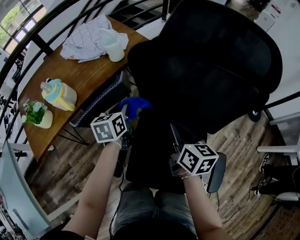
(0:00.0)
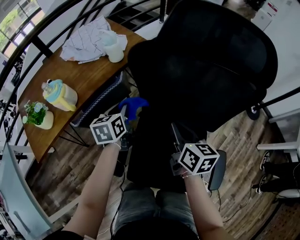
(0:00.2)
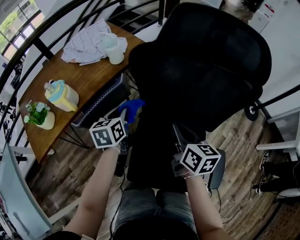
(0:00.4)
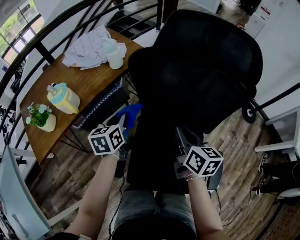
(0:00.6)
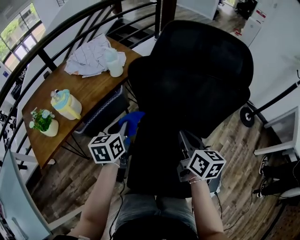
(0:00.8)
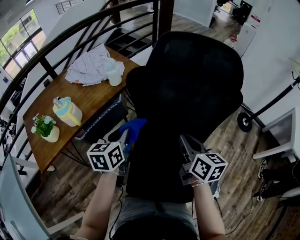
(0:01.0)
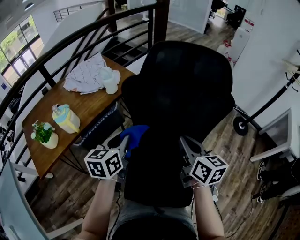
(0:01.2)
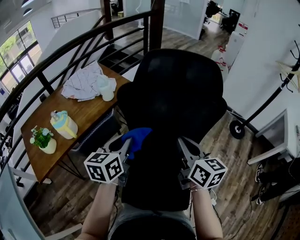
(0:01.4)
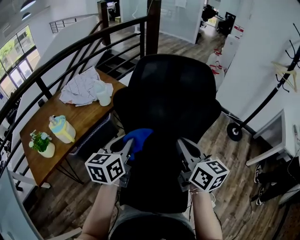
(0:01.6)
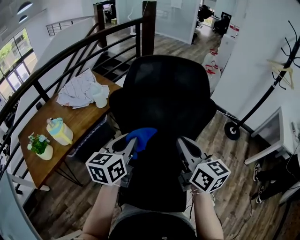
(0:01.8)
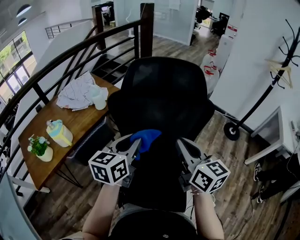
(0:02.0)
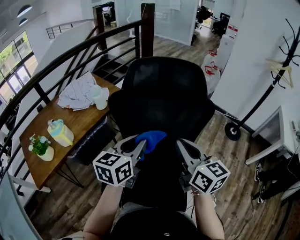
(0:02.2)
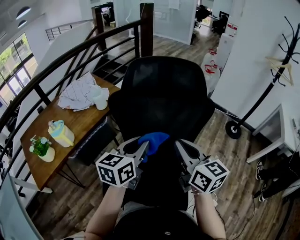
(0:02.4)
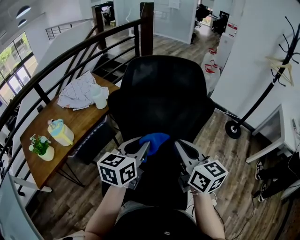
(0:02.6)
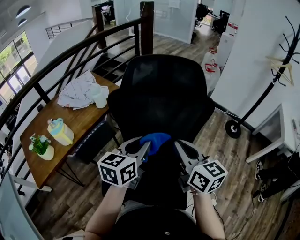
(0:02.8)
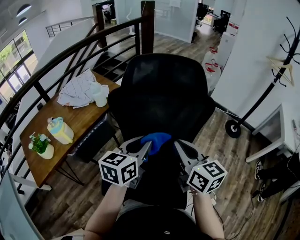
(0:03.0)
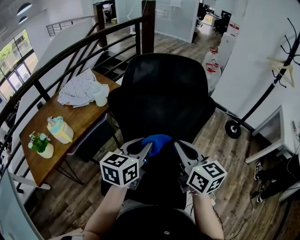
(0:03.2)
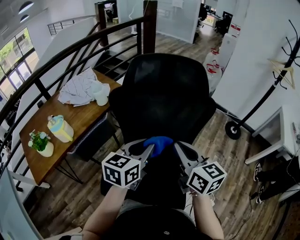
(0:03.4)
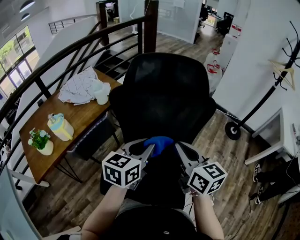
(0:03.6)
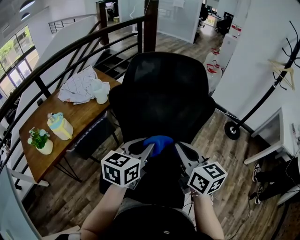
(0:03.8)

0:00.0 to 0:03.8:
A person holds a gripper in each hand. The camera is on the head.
0:00.0 to 0:01.2: The left gripper travels upward, backward and to the right by approximately 20 cm, while the right gripper shifts about 15 cm upward, to the right and backward.
0:01.2 to 0:02.6: The right gripper heads upward, covering approximately 5 cm. The left gripper goes about 15 cm to the right and upward.
0:02.6 to 0:03.8: The grippers stay close to where they were, moving slightly.

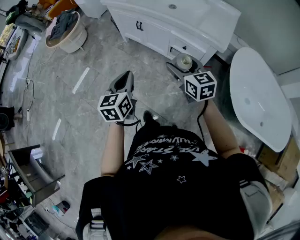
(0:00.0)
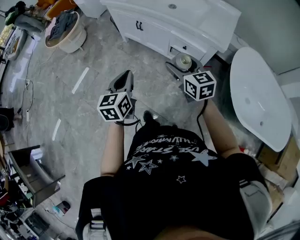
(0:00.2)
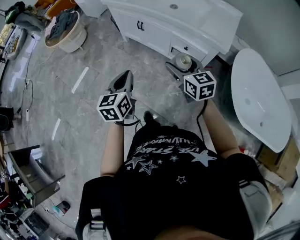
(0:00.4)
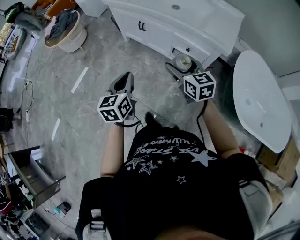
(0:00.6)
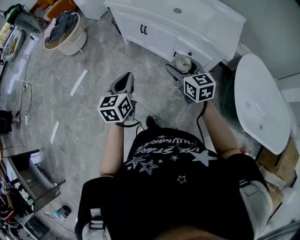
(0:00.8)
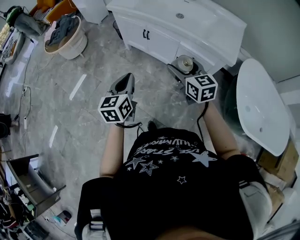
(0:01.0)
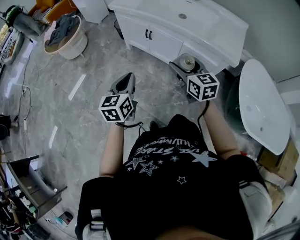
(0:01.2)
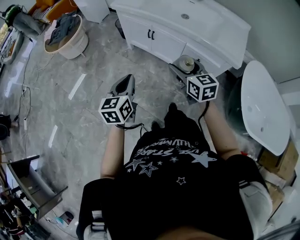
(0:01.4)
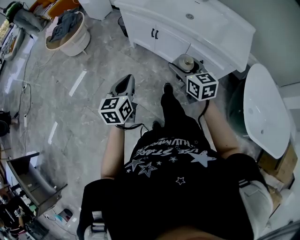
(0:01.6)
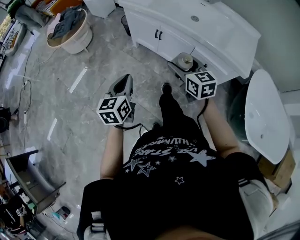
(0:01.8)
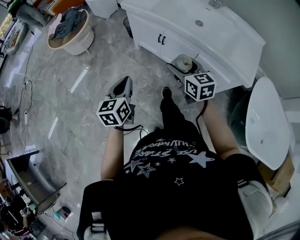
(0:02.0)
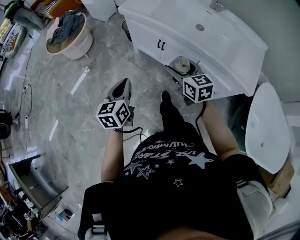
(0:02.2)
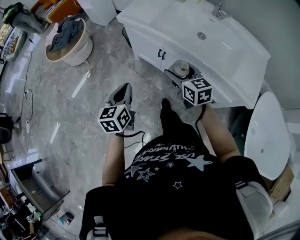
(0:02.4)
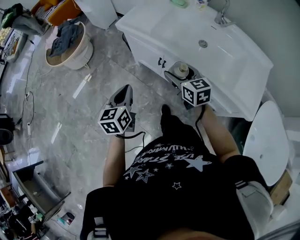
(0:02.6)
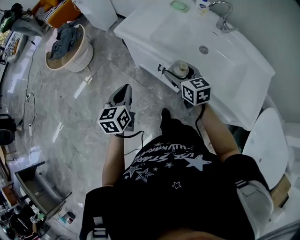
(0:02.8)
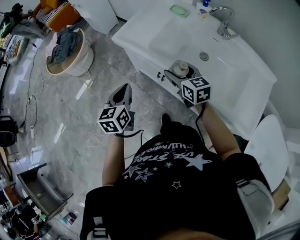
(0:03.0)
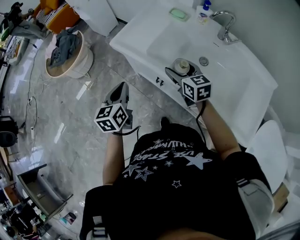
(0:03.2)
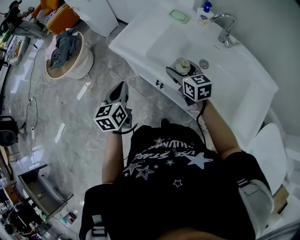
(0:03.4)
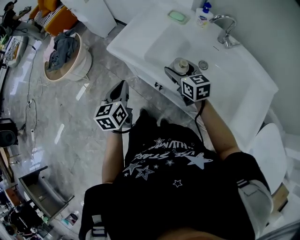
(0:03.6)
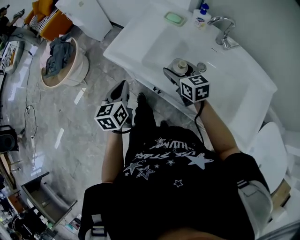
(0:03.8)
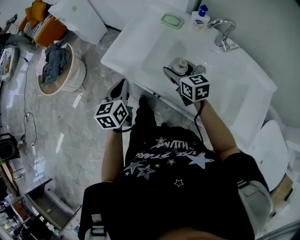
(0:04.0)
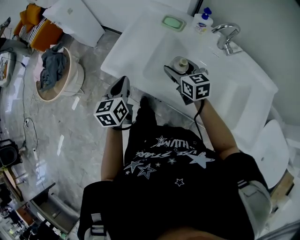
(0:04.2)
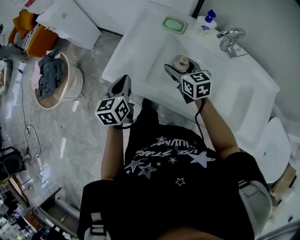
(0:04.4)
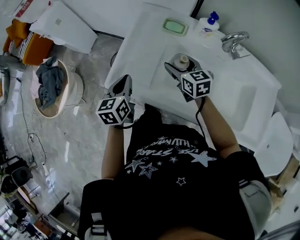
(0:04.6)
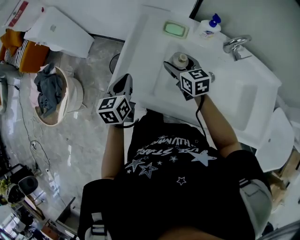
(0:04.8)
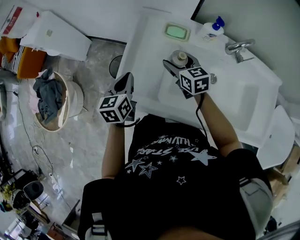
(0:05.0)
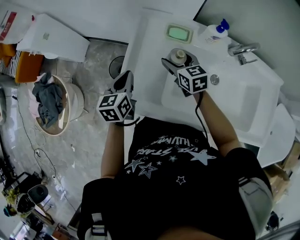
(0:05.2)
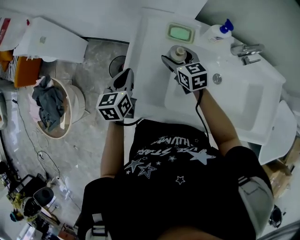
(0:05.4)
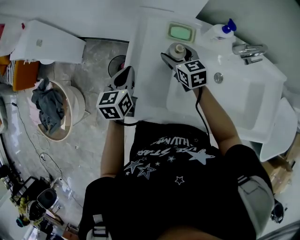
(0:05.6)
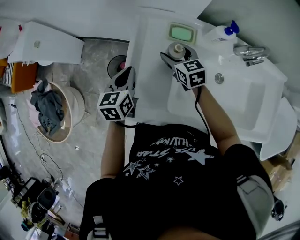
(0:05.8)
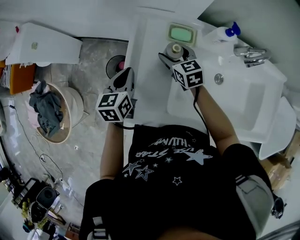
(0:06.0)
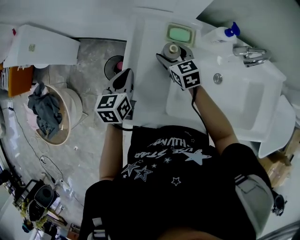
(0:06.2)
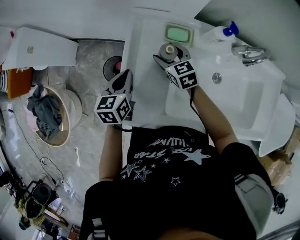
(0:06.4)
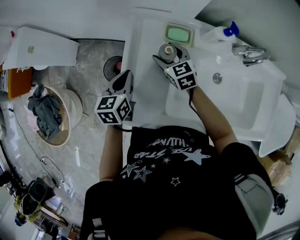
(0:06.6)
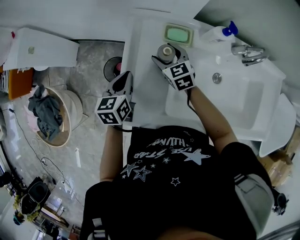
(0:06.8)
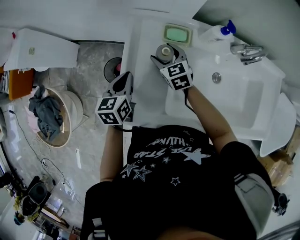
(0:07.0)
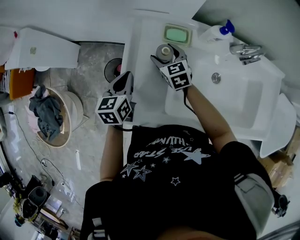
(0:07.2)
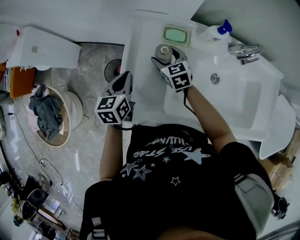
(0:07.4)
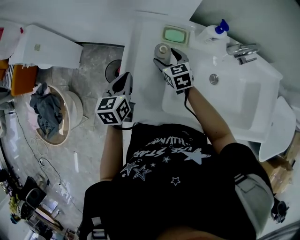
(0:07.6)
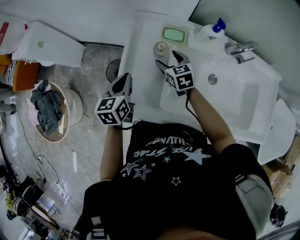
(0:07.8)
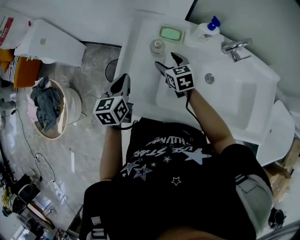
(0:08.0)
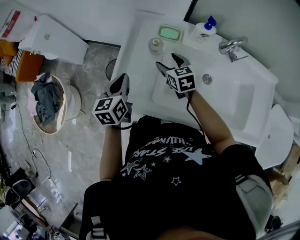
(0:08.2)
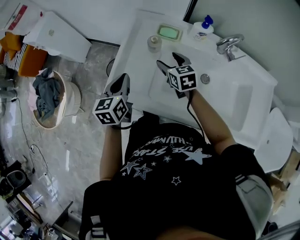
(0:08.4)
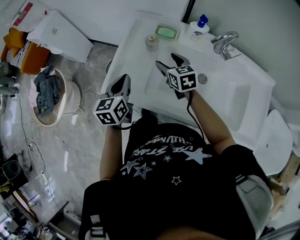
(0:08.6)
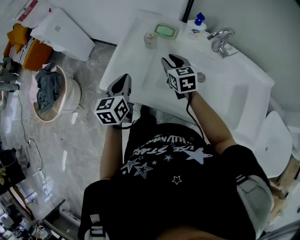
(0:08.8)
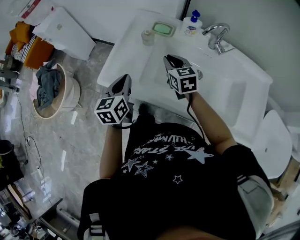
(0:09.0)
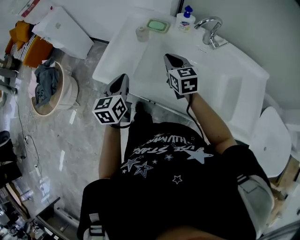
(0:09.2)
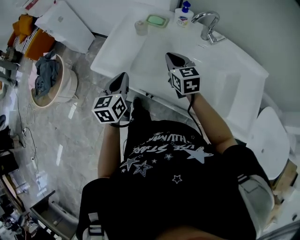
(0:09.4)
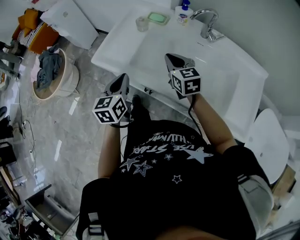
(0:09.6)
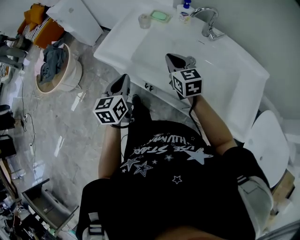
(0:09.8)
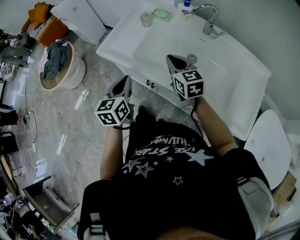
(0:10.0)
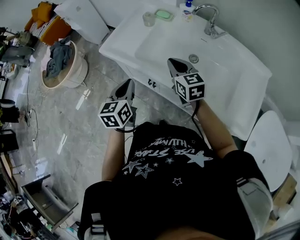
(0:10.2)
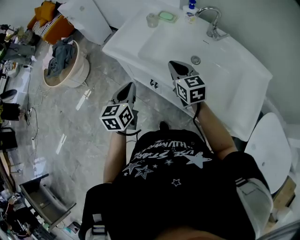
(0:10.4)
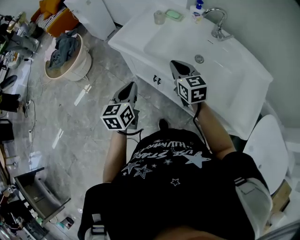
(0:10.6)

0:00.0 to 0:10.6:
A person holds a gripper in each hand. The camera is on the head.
0:00.0 to 0:01.6: Both grippers move to the left and forward, some 20 cm.
0:01.6 to 0:03.0: Both grippers move forward, roughly 40 cm.
0:03.0 to 0:04.6: Both grippers move forward, approximately 30 cm.
0:04.6 to 0:06.0: The right gripper heads forward and downward, covering some 20 cm. Meanwhile the left gripper travels forward by some 20 cm.
0:06.0 to 0:07.6: The grippers stay close to where they were, moving slightly.
0:07.6 to 0:09.0: The left gripper moves backward, about 20 cm. The right gripper travels backward, upward and to the right by about 20 cm, and closes up.
0:09.0 to 0:10.6: Both grippers travel together backward, roughly 25 cm.

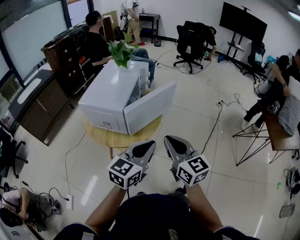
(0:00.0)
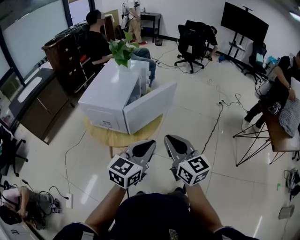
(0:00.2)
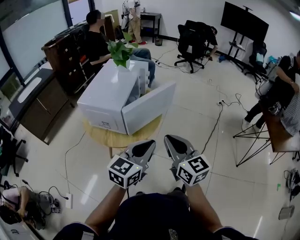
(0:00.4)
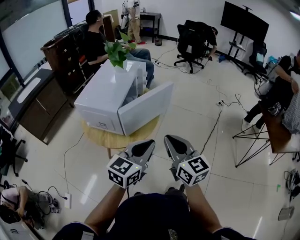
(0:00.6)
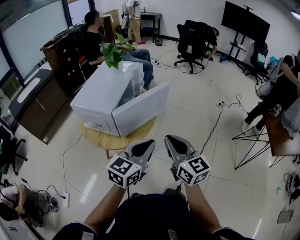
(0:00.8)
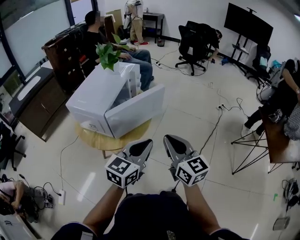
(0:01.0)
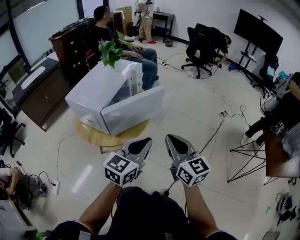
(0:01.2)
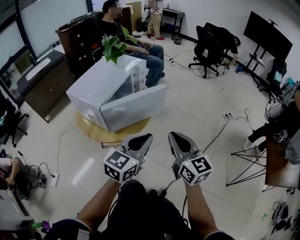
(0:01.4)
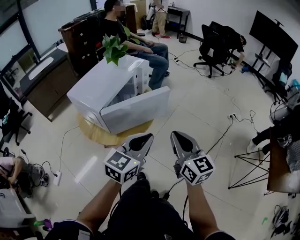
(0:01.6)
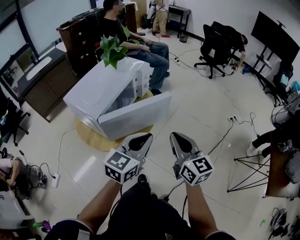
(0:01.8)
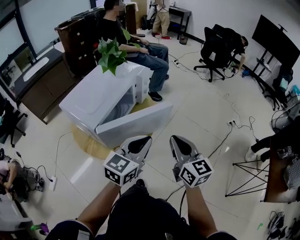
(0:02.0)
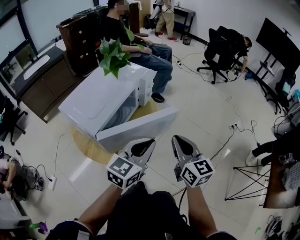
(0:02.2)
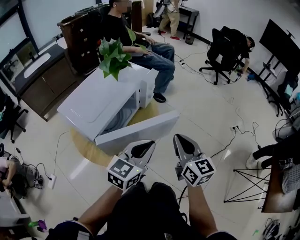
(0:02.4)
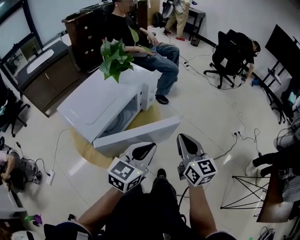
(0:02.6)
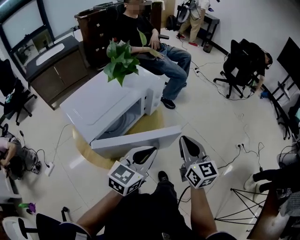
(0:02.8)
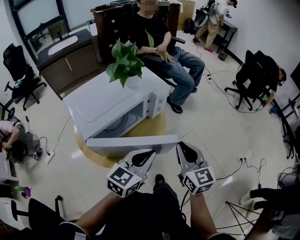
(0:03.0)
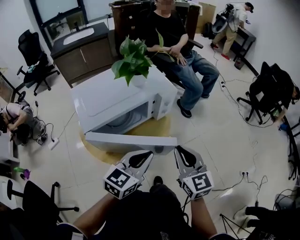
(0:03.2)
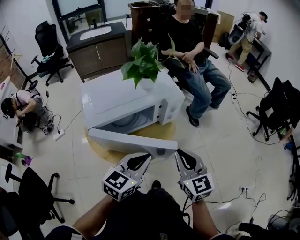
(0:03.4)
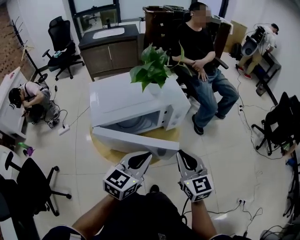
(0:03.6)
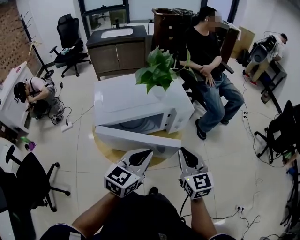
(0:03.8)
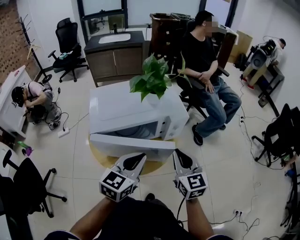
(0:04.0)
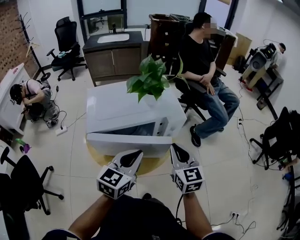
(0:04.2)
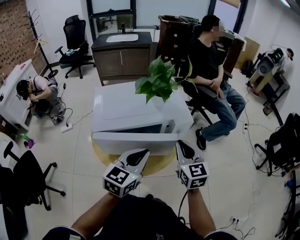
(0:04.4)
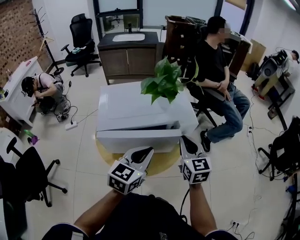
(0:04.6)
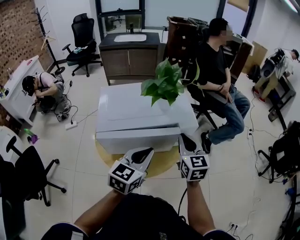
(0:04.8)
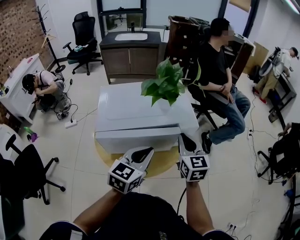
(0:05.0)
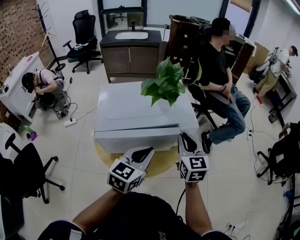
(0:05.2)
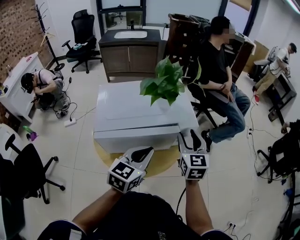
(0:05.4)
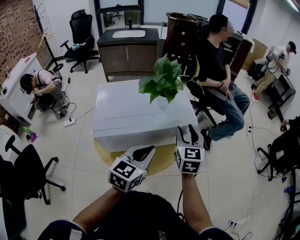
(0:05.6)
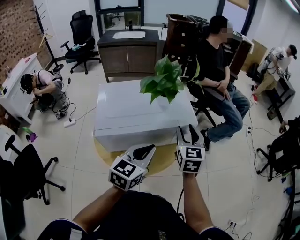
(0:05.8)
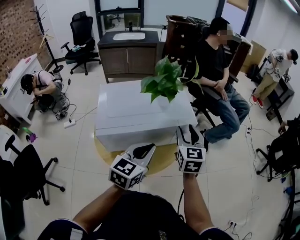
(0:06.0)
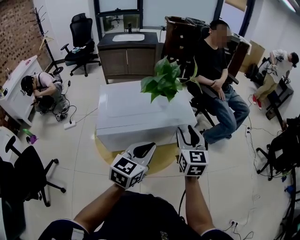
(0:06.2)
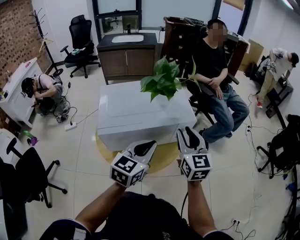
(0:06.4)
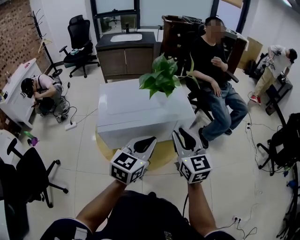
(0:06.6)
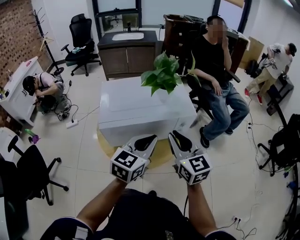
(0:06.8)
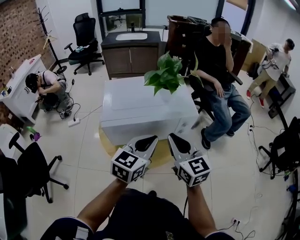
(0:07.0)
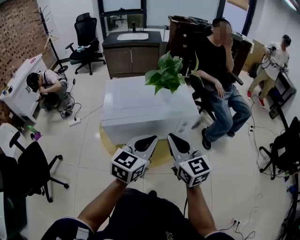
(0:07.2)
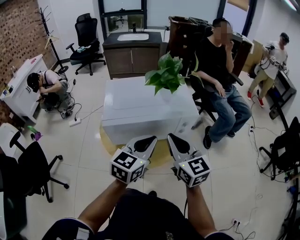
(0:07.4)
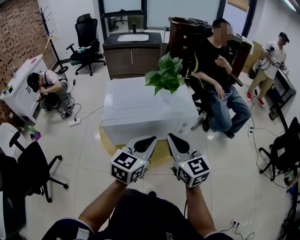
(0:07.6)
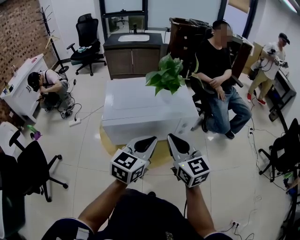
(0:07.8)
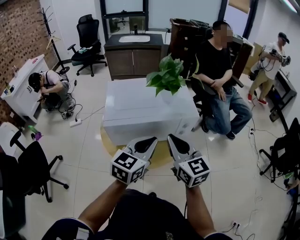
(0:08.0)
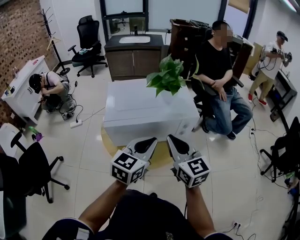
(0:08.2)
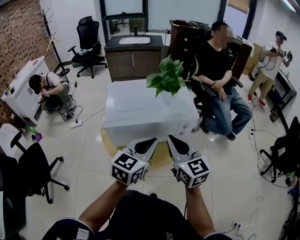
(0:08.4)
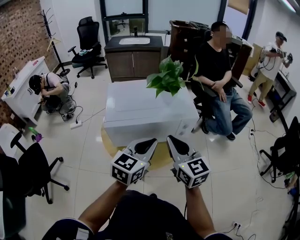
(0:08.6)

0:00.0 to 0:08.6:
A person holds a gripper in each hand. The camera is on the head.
0:00.0 to 0:01.4: The grippers both shift to the right and forward by some 15 cm.
0:01.4 to 0:02.8: Both grippers move forward, about 20 cm.
0:02.8 to 0:04.4: The right gripper changes place by roughly 15 cm, and changes its angle by approximately 40 degrees; the left gripper shifts by some 10 cm, and rotates some 40 degrees.
0:04.4 to 0:05.8: The right gripper goes approximately 5 cm forward, and opens its fingers.
0:05.8 to 0:07.2: The right gripper is displaced backward and to the left by approximately 15 cm, turns by approximately 30 degrees, and closes.
0:07.2 to 0:08.6: Neither gripper changes place.

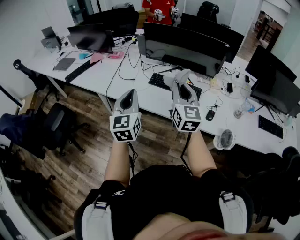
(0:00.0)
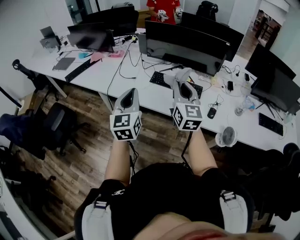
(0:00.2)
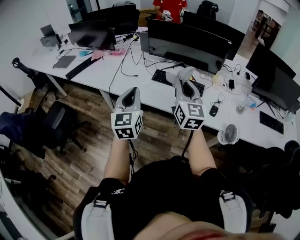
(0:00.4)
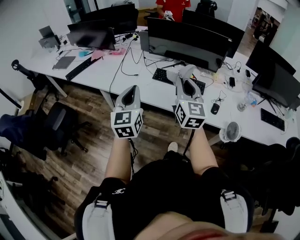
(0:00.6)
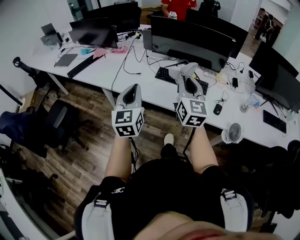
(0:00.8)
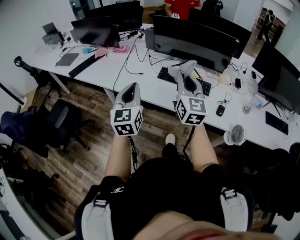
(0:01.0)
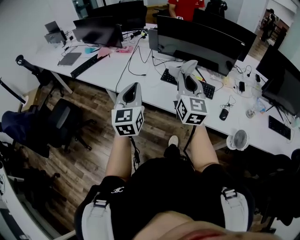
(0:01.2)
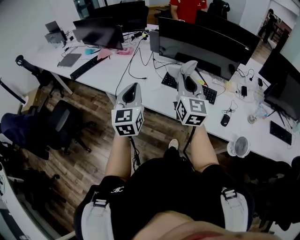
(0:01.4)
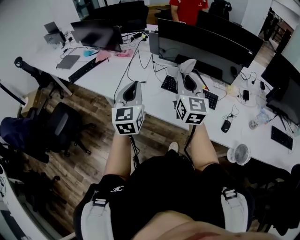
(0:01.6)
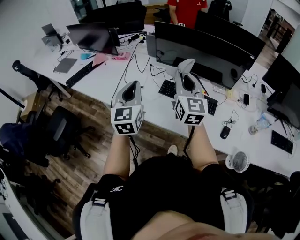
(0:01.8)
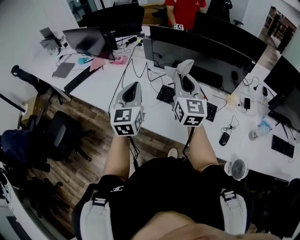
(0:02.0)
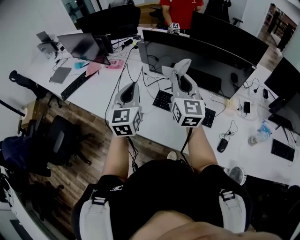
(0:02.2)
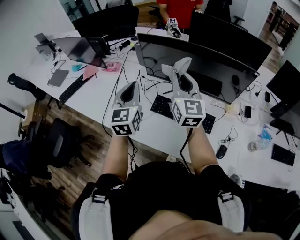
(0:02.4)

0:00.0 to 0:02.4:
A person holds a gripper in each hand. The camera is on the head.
0:00.0 to 0:01.2: The grippers both shift to the left by some 5 cm.
0:01.2 to 0:02.4: Both grippers move forward, roughly 30 cm.
